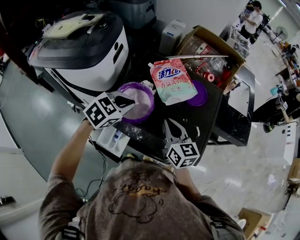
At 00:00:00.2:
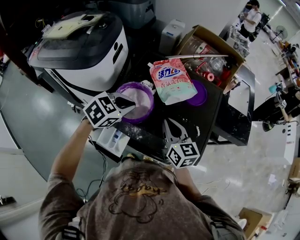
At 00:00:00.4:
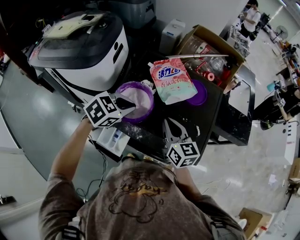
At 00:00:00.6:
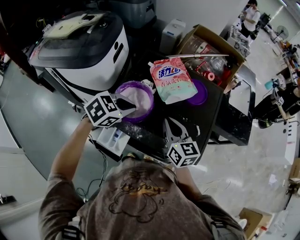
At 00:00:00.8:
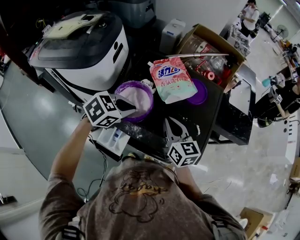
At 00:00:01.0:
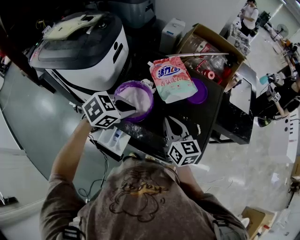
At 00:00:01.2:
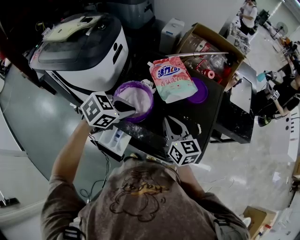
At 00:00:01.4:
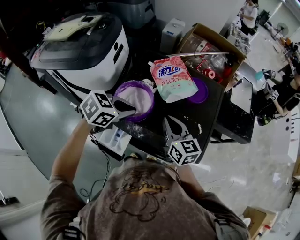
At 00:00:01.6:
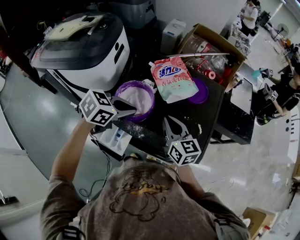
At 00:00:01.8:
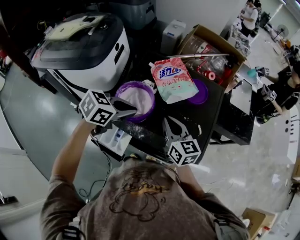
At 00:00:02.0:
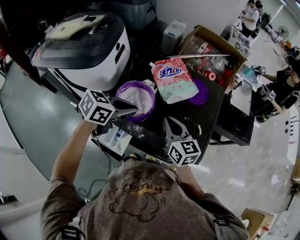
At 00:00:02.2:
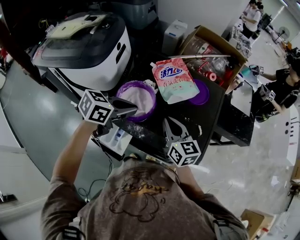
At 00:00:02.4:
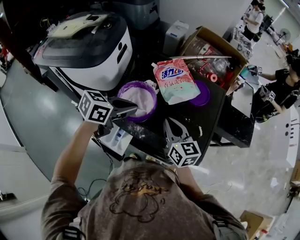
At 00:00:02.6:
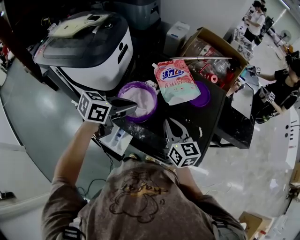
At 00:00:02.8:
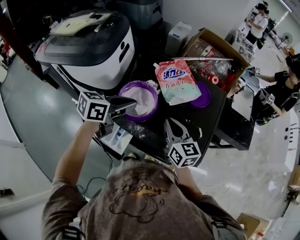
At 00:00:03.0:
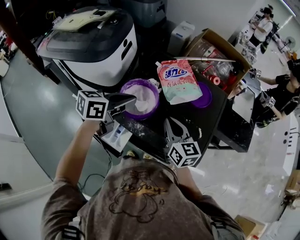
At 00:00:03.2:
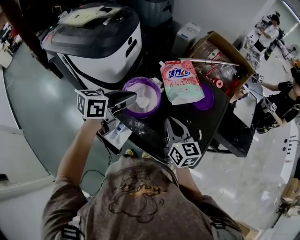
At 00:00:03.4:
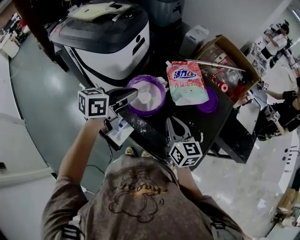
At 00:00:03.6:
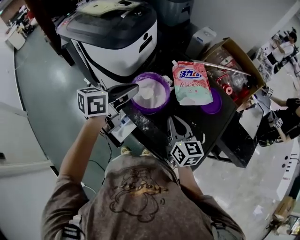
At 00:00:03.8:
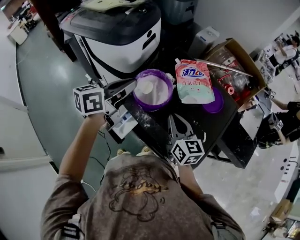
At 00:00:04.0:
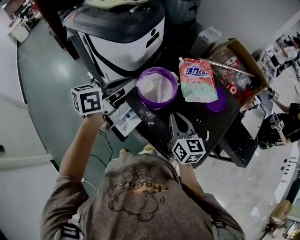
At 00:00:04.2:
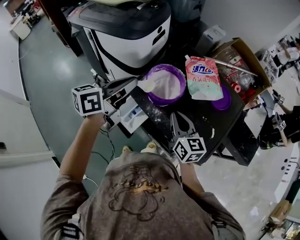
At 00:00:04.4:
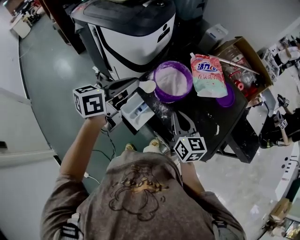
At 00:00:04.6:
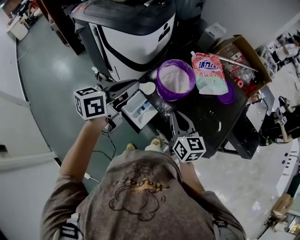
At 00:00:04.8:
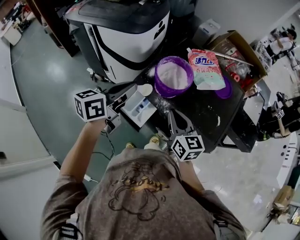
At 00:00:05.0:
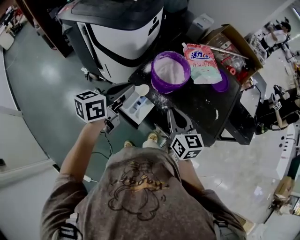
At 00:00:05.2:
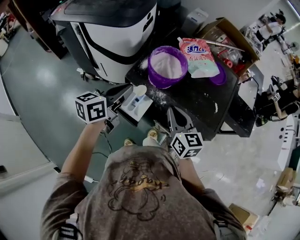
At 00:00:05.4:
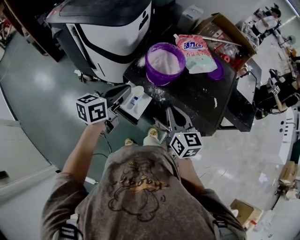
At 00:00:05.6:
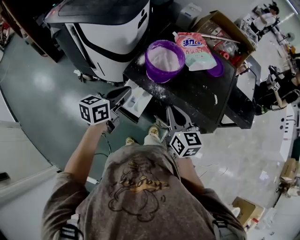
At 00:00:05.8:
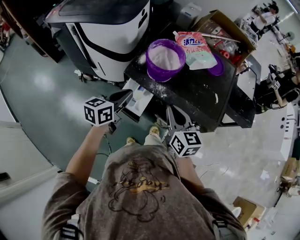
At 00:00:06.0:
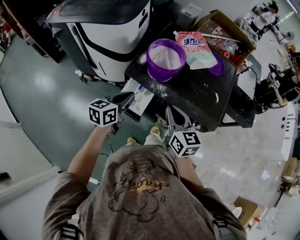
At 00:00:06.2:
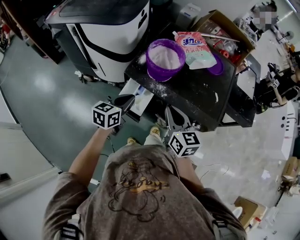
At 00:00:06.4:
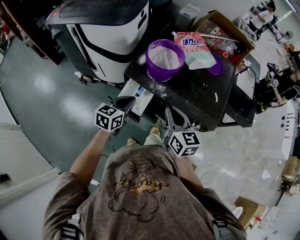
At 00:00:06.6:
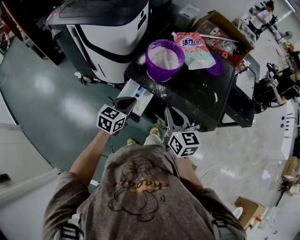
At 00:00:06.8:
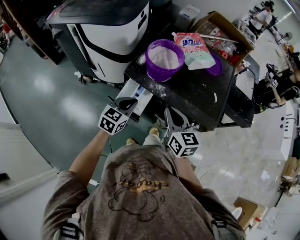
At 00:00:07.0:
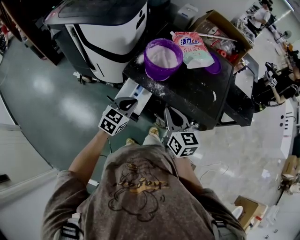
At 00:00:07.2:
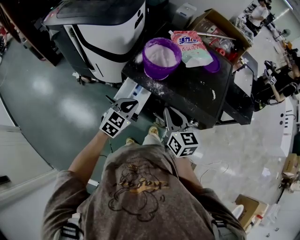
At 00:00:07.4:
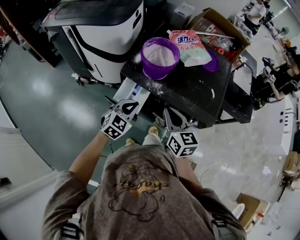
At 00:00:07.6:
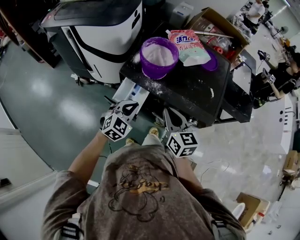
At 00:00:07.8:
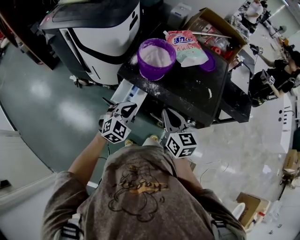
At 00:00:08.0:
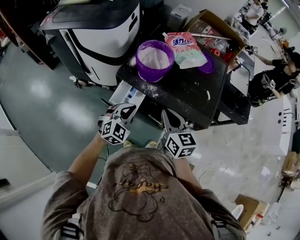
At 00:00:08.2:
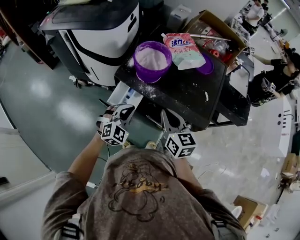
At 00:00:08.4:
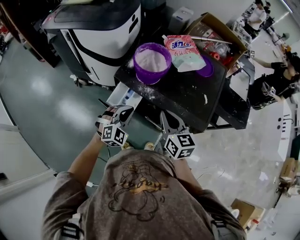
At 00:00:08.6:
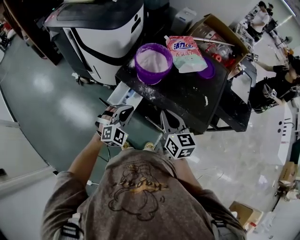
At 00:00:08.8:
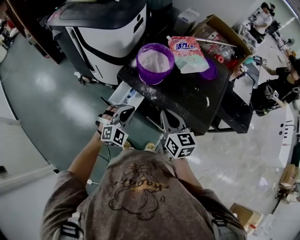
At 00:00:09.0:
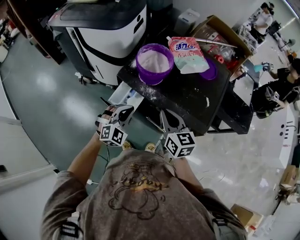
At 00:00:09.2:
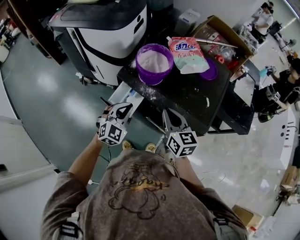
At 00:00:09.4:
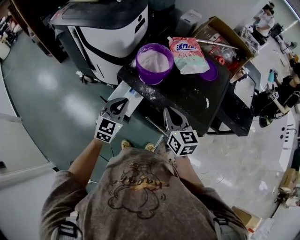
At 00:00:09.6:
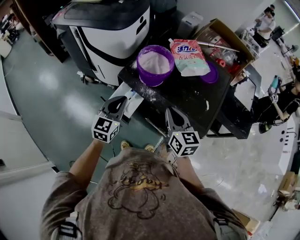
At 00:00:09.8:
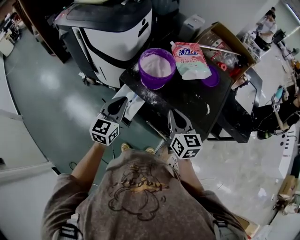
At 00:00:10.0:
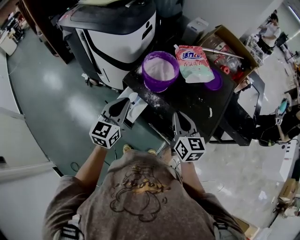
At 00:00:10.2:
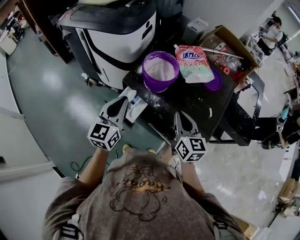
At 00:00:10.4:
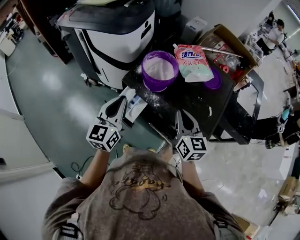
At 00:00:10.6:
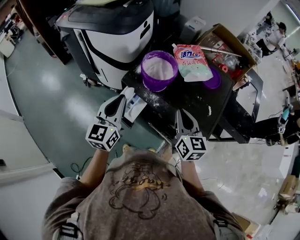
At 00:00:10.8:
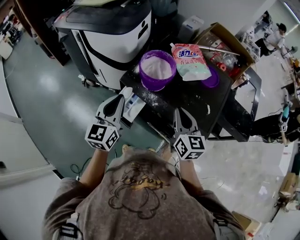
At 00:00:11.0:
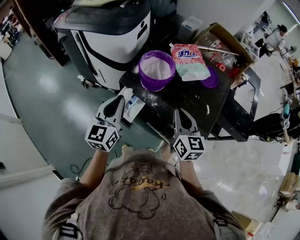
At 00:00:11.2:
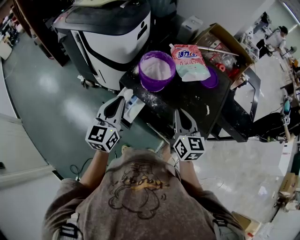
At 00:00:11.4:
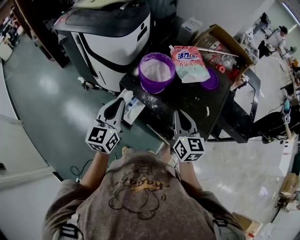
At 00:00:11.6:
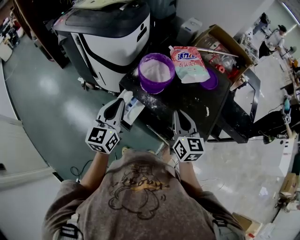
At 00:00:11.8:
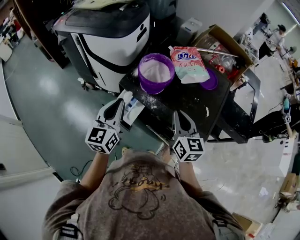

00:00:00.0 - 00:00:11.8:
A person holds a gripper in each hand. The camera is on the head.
00:00:00.0 - 00:00:01.4: The grippers move only a little.
00:00:01.4 - 00:00:03.0: The left gripper changes place by some 5 cm, and turns by approximately 40 degrees.
00:00:03.0 - 00:00:04.4: The grippers both shift to the left and backward by about 10 cm. The left gripper turns by some 30 degrees.
00:00:04.4 - 00:00:06.0: The right gripper is displaced backward by approximately 10 cm. The left gripper travels downward and backward by approximately 20 cm.
00:00:06.0 - 00:00:07.4: The left gripper shifts some 10 cm downward and to the right, and rotates around the line of its fingers by some 40 degrees, clockwise from behind.
00:00:07.4 - 00:00:08.8: The left gripper turns by about 30 degrees.
00:00:08.8 - 00:00:10.4: The left gripper heads upward, covering roughly 15 cm, and rotates around the line of its fingers by approximately 60 degrees, counterclockwise from behind; the right gripper moves roughly 5 cm.
00:00:10.4 - 00:00:11.8: The two grippers keep their place.

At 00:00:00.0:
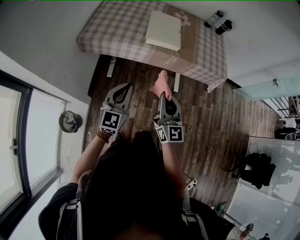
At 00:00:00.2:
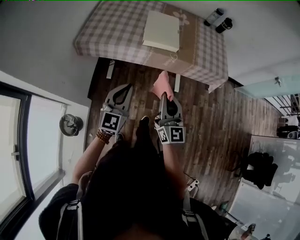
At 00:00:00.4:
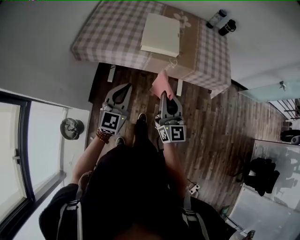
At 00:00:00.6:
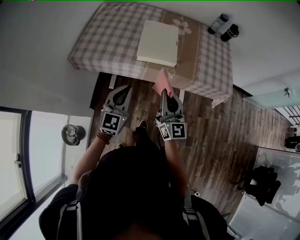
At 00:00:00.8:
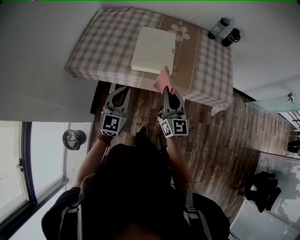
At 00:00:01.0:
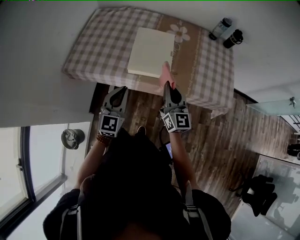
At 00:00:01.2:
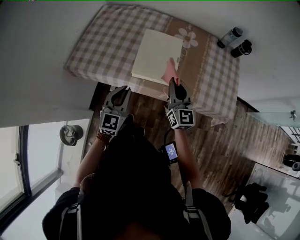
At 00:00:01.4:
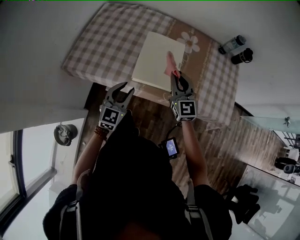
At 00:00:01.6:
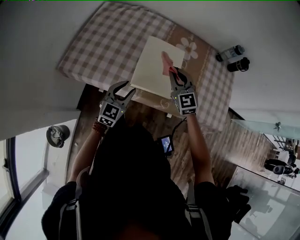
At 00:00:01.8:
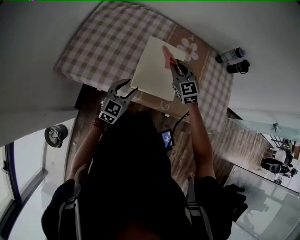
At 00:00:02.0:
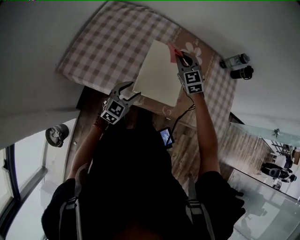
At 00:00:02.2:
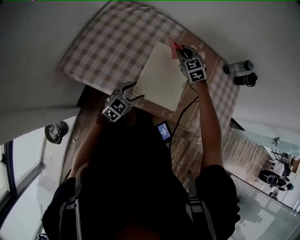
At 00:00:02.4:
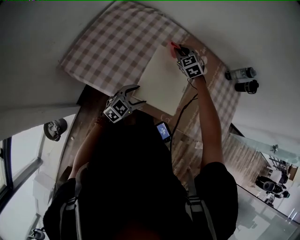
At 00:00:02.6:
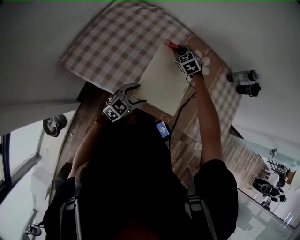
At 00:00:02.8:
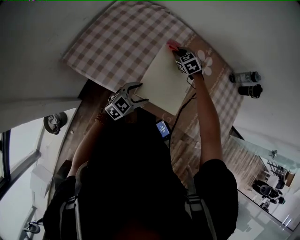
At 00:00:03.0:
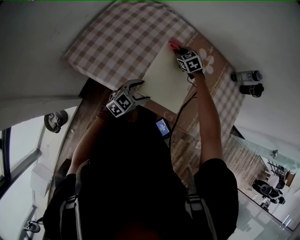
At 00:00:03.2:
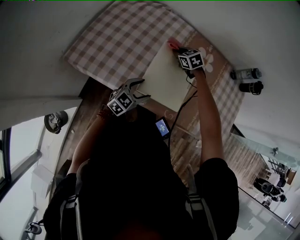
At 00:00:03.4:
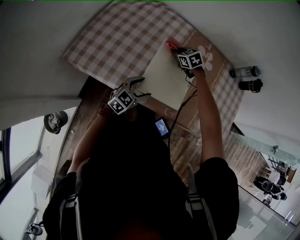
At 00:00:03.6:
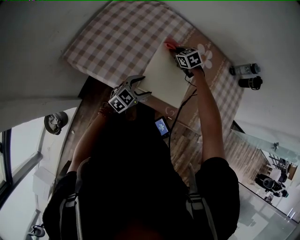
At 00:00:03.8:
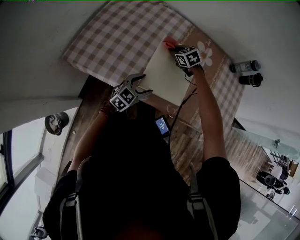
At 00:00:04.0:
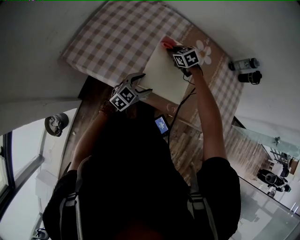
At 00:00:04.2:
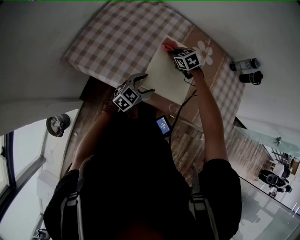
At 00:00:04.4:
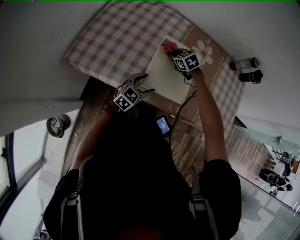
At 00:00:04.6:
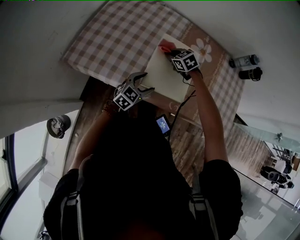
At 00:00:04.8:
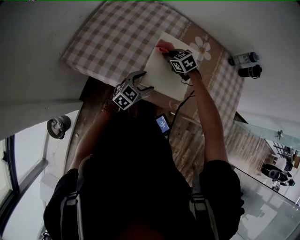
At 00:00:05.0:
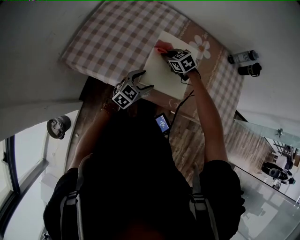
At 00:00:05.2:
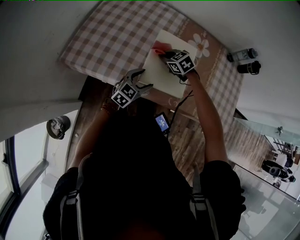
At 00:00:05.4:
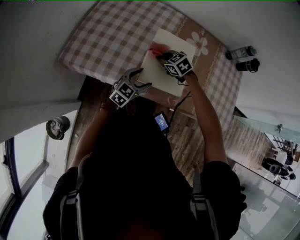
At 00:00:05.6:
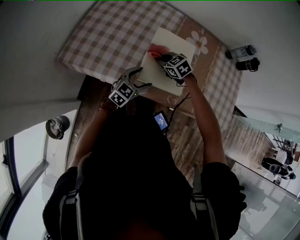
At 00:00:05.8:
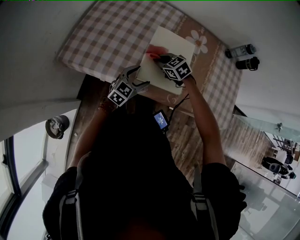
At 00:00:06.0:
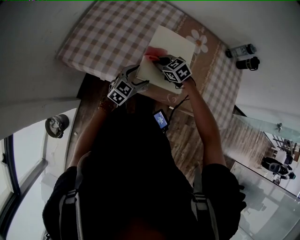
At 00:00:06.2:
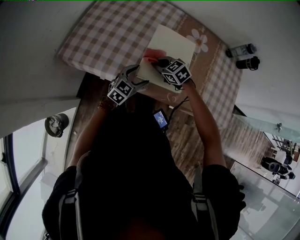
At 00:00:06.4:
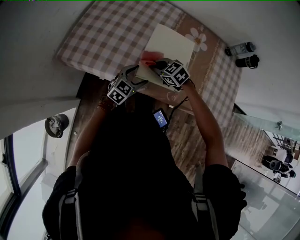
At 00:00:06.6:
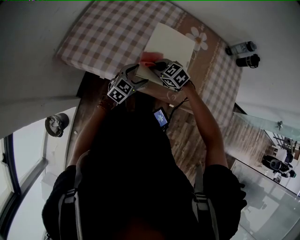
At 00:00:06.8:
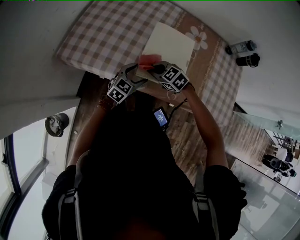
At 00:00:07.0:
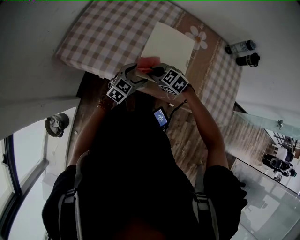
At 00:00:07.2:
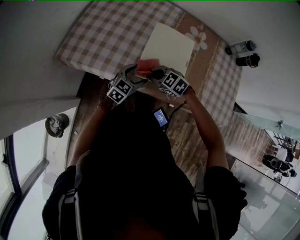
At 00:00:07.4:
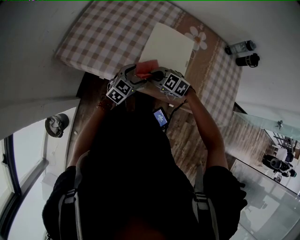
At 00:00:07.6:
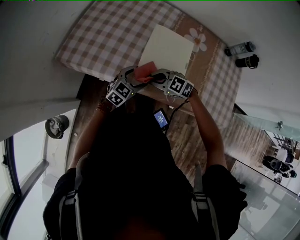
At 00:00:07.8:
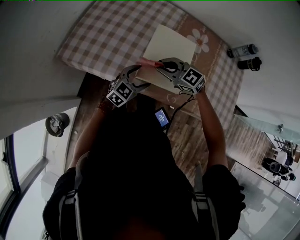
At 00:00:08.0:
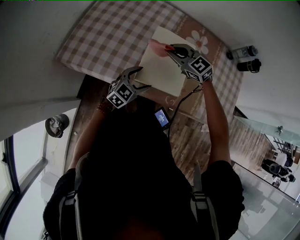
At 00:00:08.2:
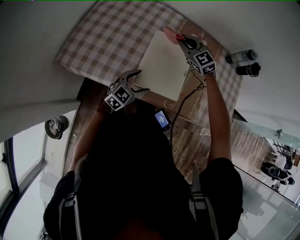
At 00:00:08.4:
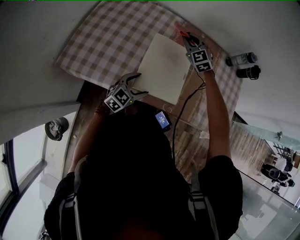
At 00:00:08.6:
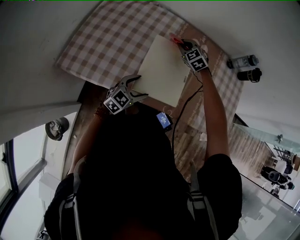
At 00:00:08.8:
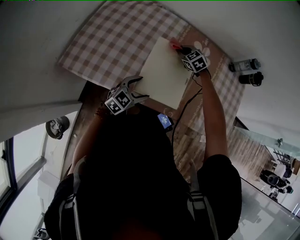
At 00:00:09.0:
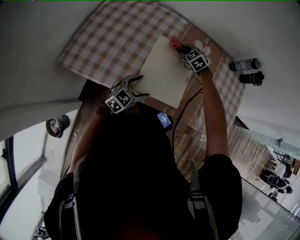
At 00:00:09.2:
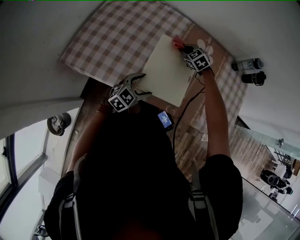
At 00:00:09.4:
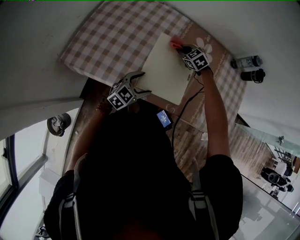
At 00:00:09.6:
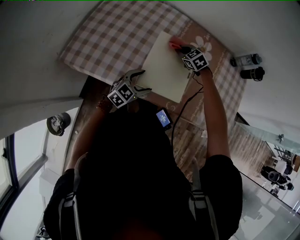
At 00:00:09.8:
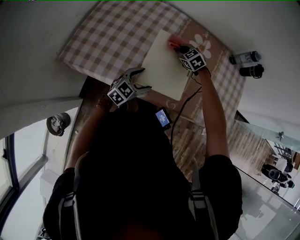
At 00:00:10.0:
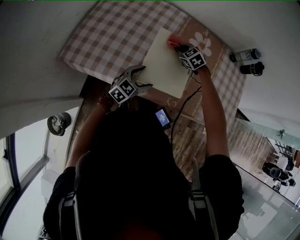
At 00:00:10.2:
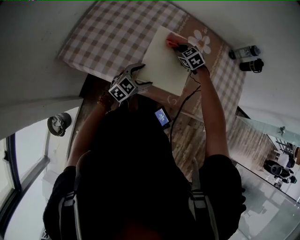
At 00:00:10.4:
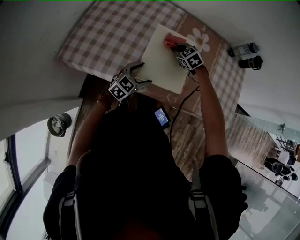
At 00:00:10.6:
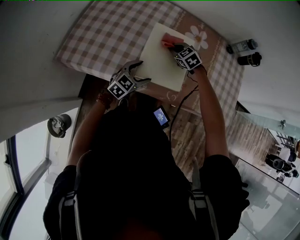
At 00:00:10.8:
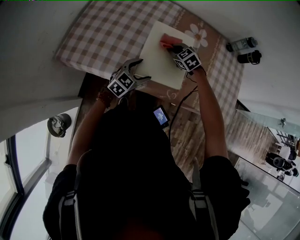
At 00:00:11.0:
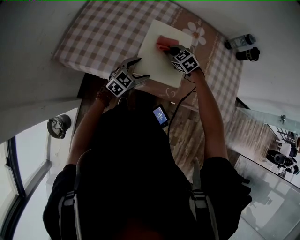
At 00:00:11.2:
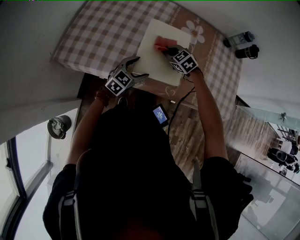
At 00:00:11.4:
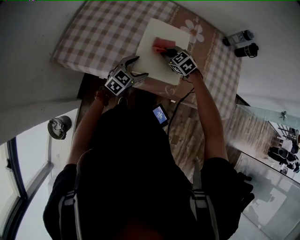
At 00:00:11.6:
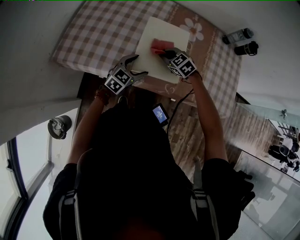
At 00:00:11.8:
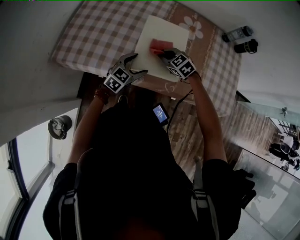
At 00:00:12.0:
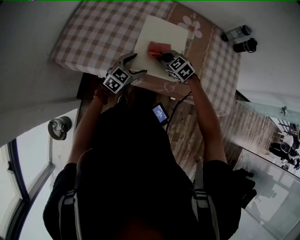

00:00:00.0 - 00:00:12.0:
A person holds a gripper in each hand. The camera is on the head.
00:00:00.0 - 00:00:01.6: The pair of grippers is taken forward, about 50 cm. The left gripper opens up. Meanwhile the right gripper swivels about 40 degrees.
00:00:01.6 - 00:00:03.0: The left gripper goes about 10 cm downward and forward, and opens up. The right gripper travels forward and downward by some 30 cm, and angles its fingers downward, by roughly 30 degrees.
00:00:03.0 - 00:00:04.4: The right gripper heads backward, covering approximately 10 cm.
00:00:04.4 - 00:00:06.0: The right gripper is displaced backward by roughly 10 cm.
00:00:06.0 - 00:00:07.6: The right gripper shifts by approximately 10 cm, and changes its angle by roughly 30 degrees.
00:00:07.6 - 00:00:09.0: The left gripper ends up some 5 cm from where it was, while the right gripper reaches approximately 10 cm upward, then returns, and rotates about 30 degrees.
00:00:09.0 - 00:00:10.4: The right gripper is displaced backward by some 10 cm.
00:00:10.4 - 00:00:12.0: The right gripper heads backward, covering some 10 cm.
